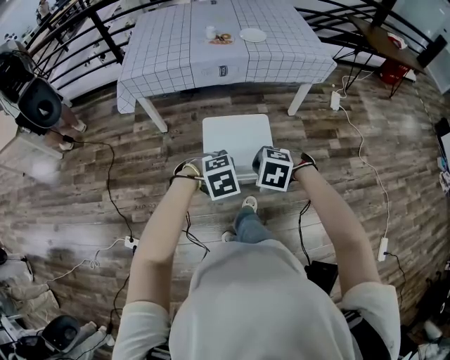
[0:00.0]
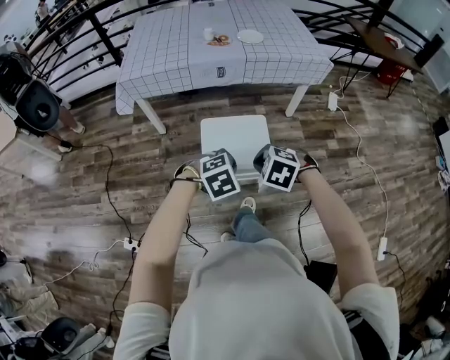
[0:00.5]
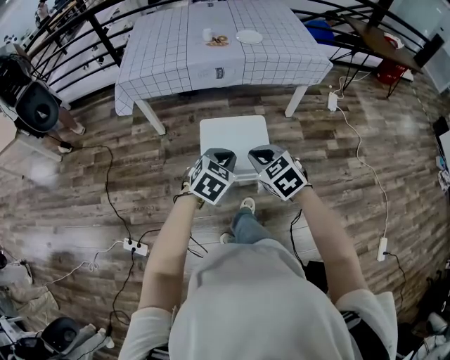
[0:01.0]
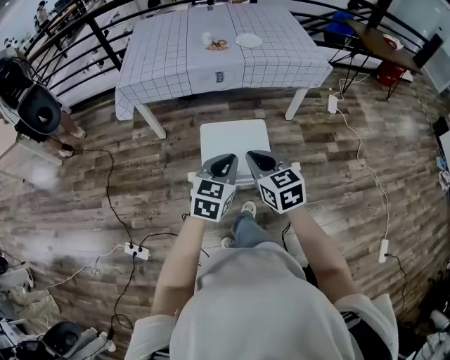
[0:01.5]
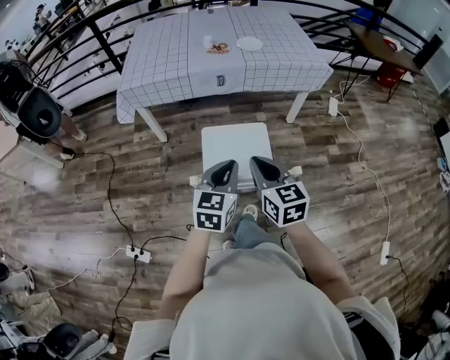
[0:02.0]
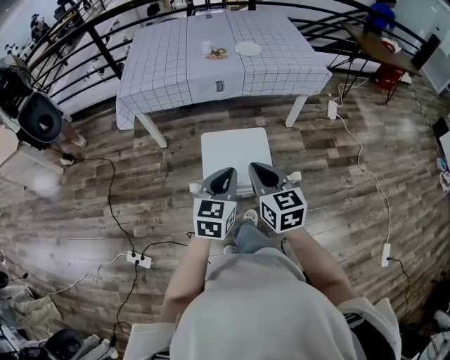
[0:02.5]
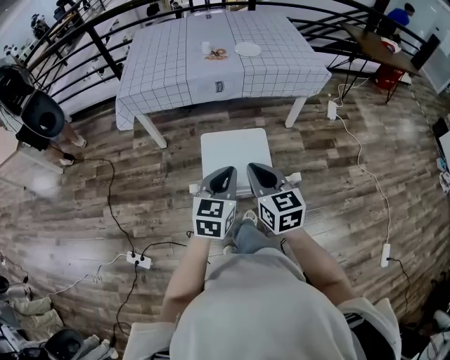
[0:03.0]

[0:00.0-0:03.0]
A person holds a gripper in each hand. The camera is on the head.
0:00.0 to 0:01.5: The grippers both shift upward by roughly 10 cm. The left gripper points its fingers about 40 degrees further upward, while the right gripper angles its fingers upward, by about 40 degrees.
0:01.5 to 0:03.0: There are only small adjustments of the grippers.

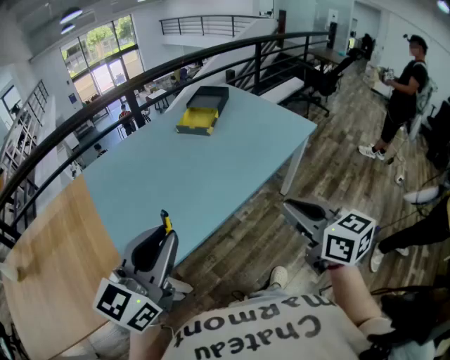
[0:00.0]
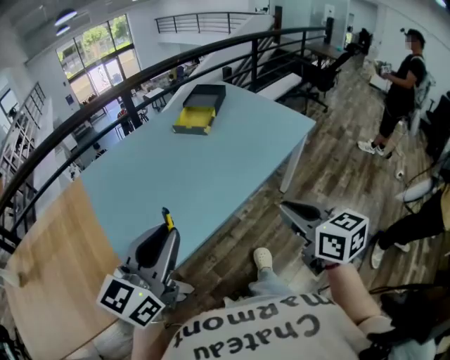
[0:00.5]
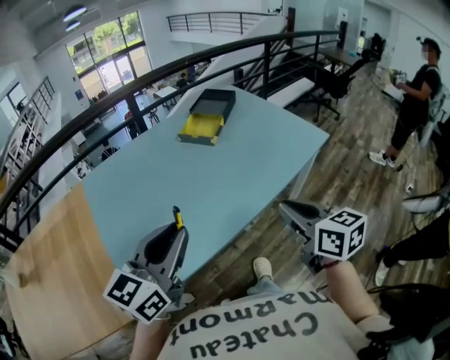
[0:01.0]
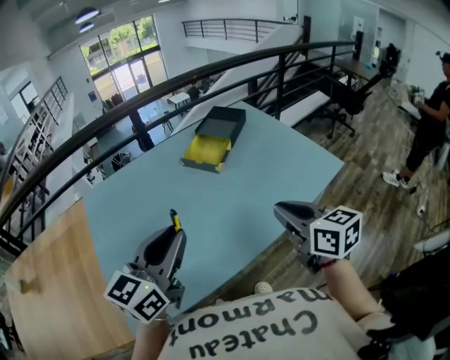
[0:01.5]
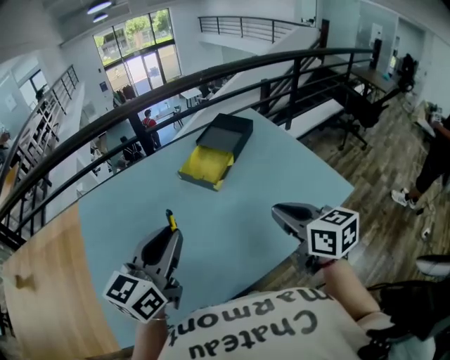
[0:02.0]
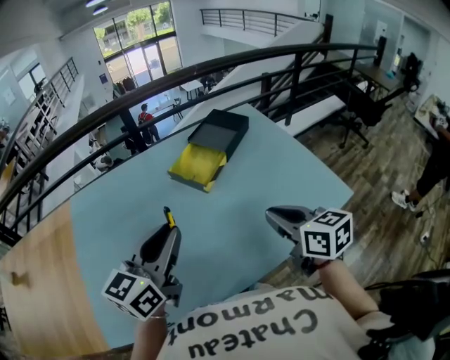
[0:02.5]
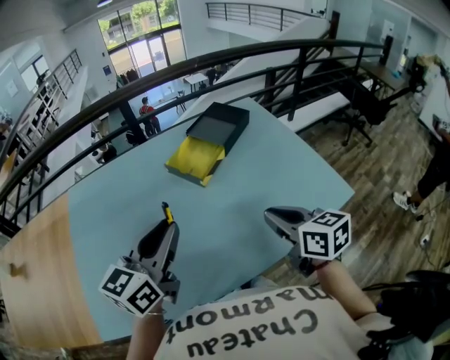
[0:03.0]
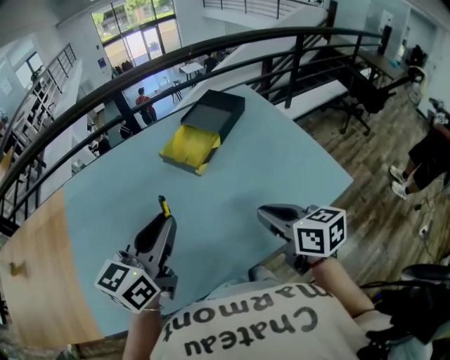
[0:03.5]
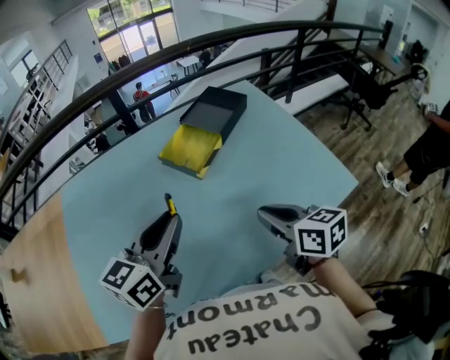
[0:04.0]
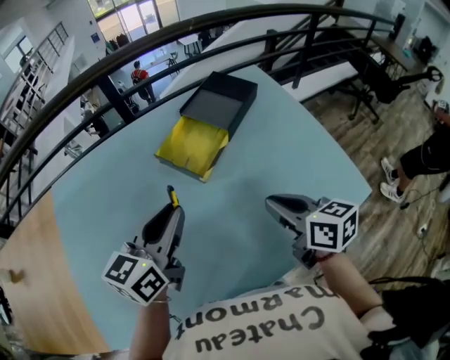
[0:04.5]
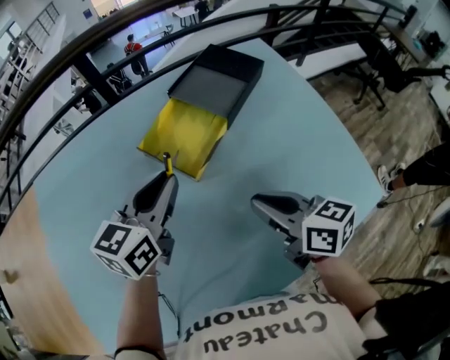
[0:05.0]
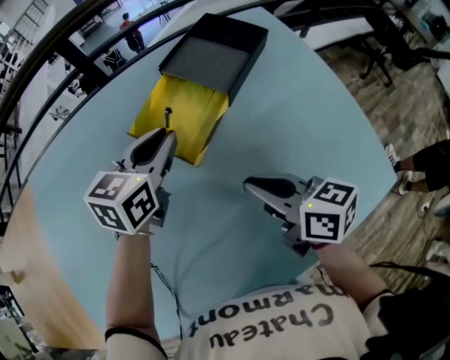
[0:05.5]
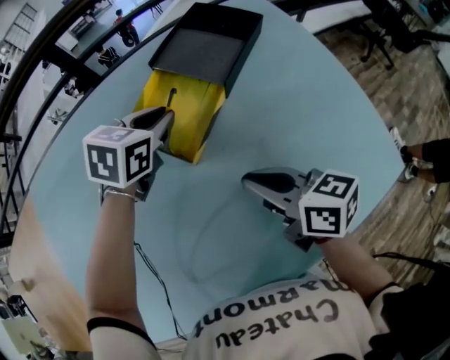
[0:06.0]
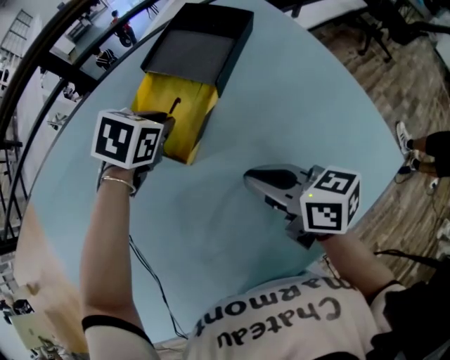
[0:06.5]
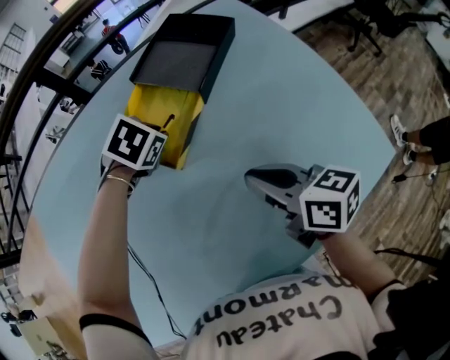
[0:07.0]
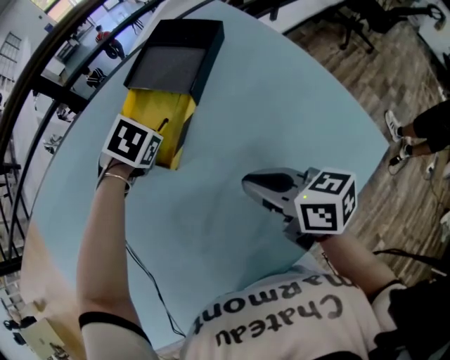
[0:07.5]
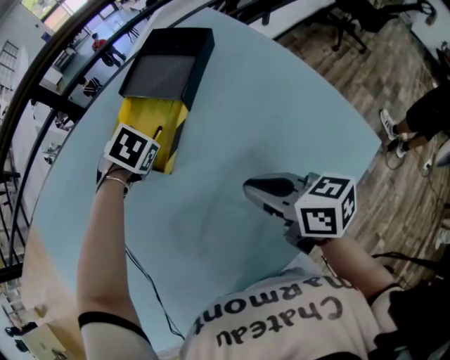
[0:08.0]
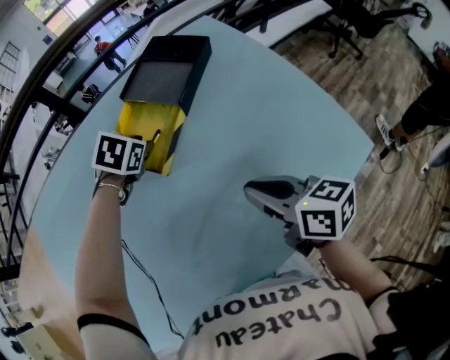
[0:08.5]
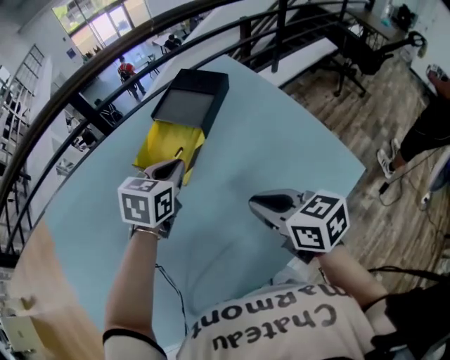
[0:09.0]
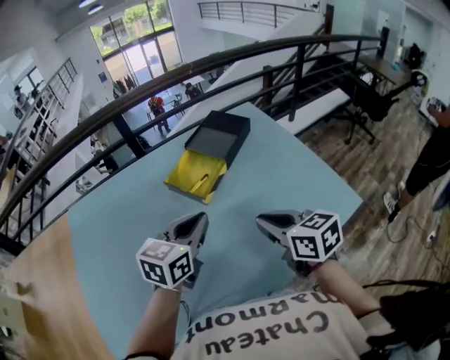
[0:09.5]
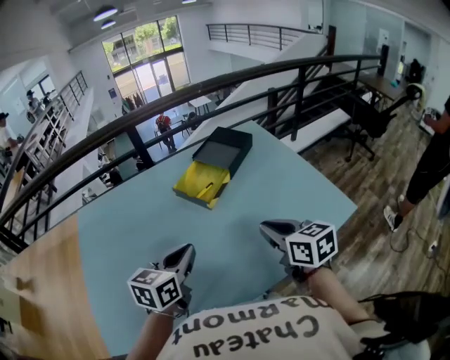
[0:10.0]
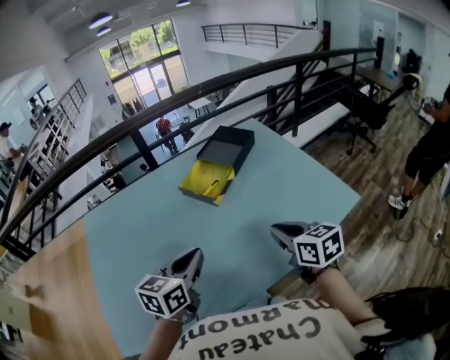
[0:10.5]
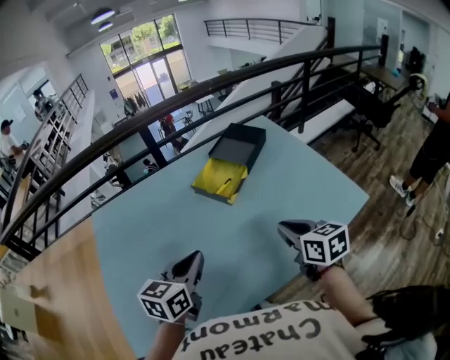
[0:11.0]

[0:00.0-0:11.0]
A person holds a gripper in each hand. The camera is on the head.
0:00.0 to 0:02.0: Both grippers move forward, some 35 cm.
0:02.0 to 0:03.5: The right gripper goes approximately 5 cm downward. Meanwhile the left gripper goes about 5 cm to the right.
0:03.5 to 0:05.5: The left gripper goes approximately 35 cm forward and downward. Meanwhile the right gripper moves forward and downward, some 20 cm.
0:05.5 to 0:07.5: The right gripper ends up about 5 cm from where it was. The left gripper shifts some 10 cm downward, and angles its fingers downward, by approximately 50 degrees.
0:07.5 to 0:09.0: The right gripper shifts approximately 5 cm upward. The left gripper heads upward, covering approximately 10 cm, and tips its fingers upward by some 40 degrees.
0:09.0 to 0:11.0: The right gripper shifts about 5 cm backward, while the left gripper heads backward and to the left, covering about 30 cm, and changes its angle by approximately 20 degrees.

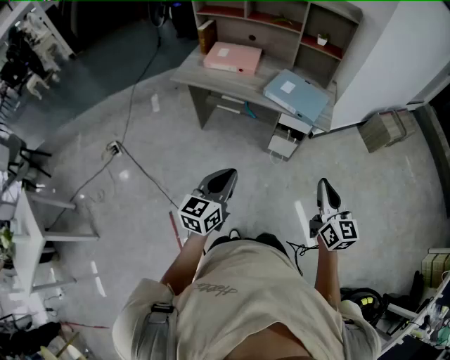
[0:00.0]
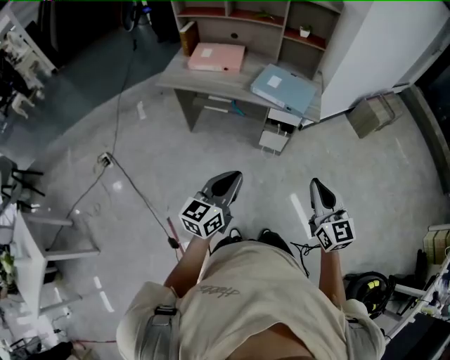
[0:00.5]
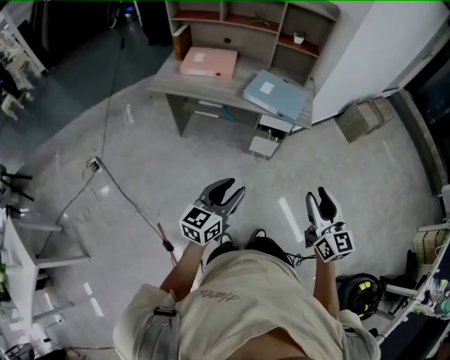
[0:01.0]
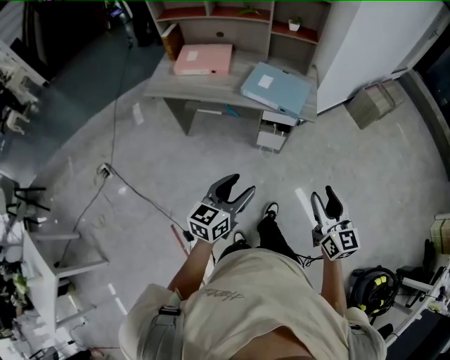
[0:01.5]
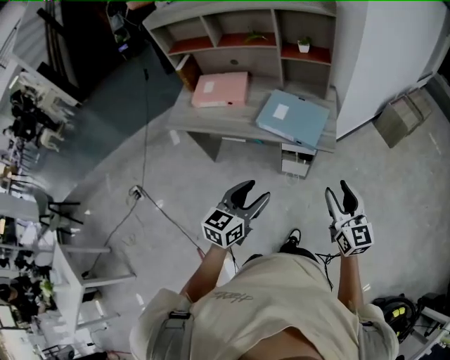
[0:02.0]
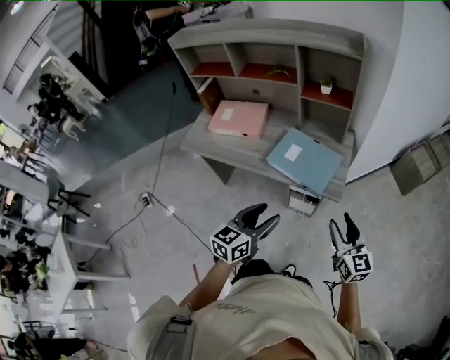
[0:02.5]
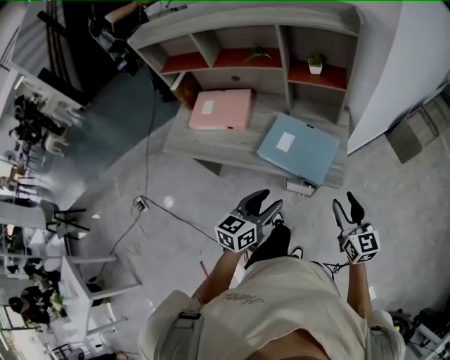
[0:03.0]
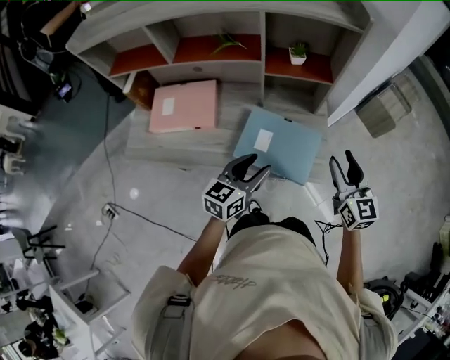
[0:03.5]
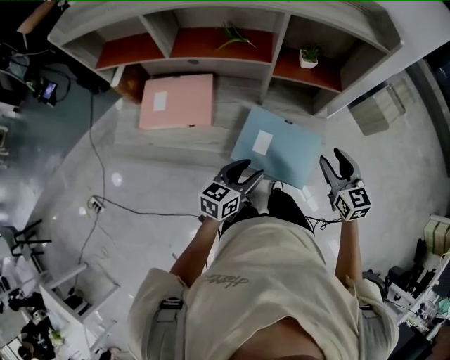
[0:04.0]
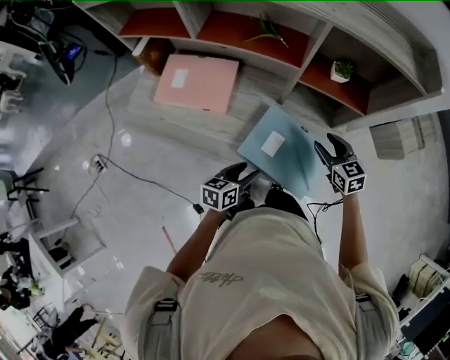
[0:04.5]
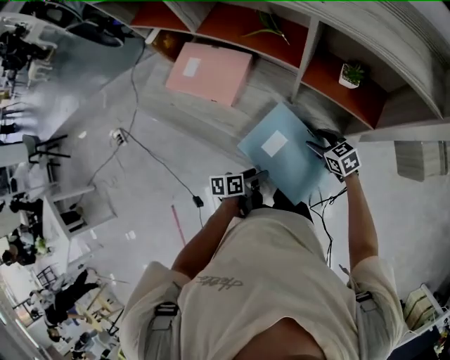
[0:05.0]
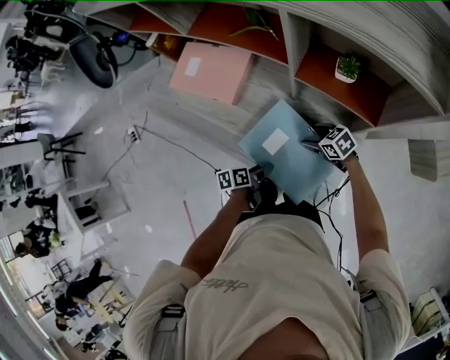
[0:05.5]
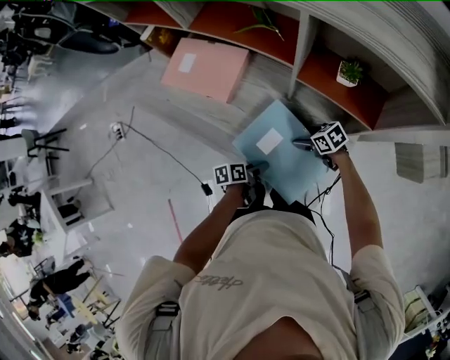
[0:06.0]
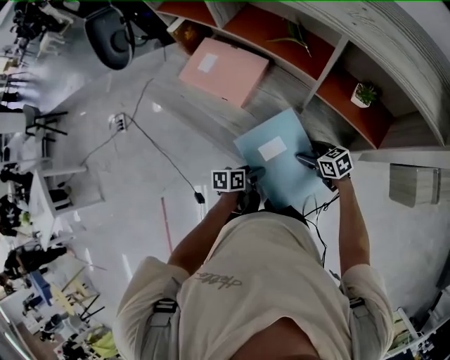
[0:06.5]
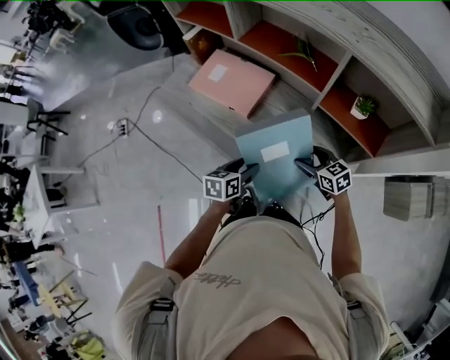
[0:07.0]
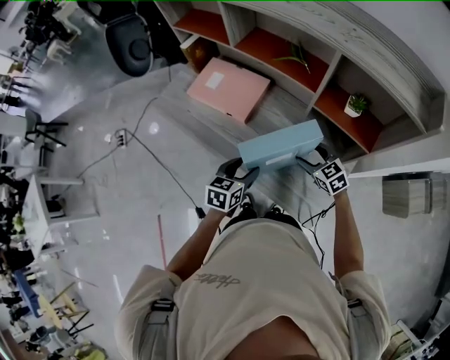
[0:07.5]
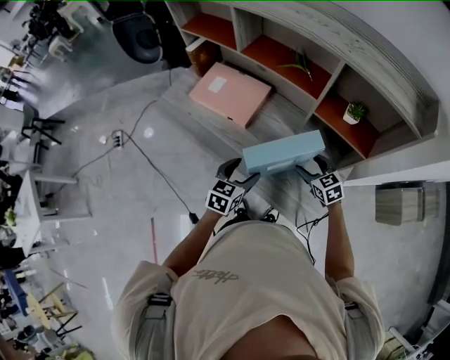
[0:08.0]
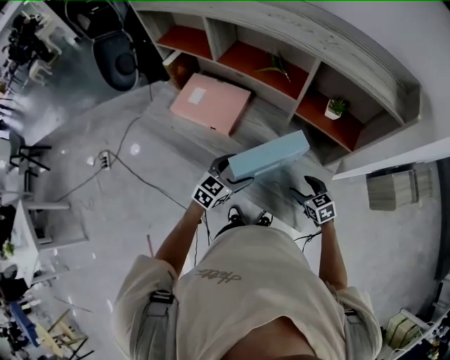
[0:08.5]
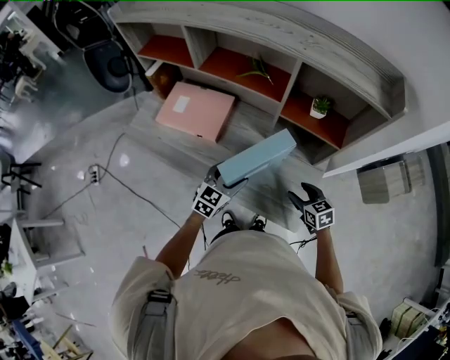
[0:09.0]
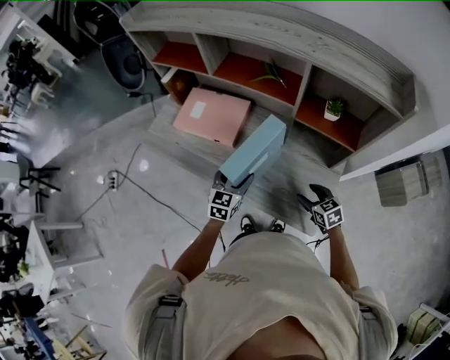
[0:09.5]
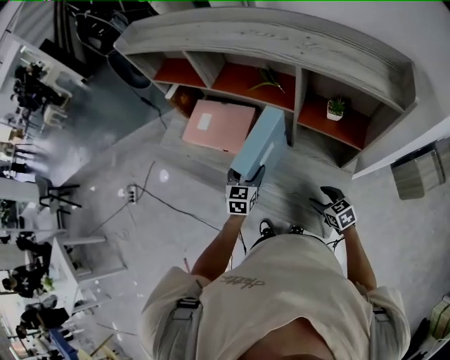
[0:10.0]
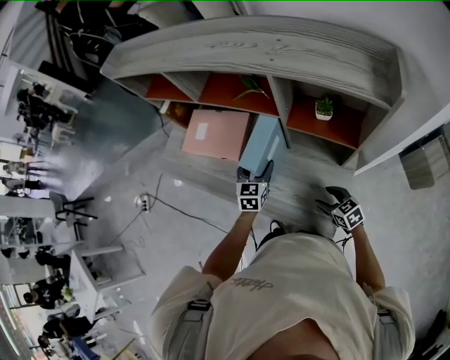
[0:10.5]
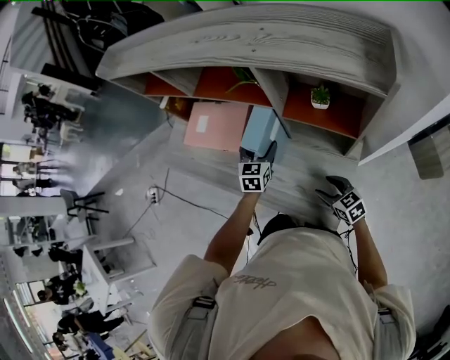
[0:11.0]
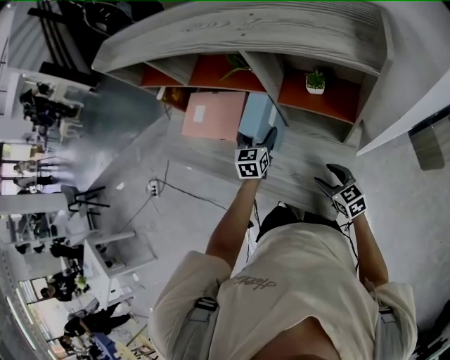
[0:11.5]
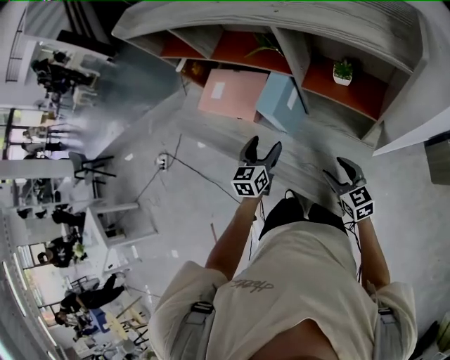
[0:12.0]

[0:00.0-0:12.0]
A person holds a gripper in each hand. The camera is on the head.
0:00.0 to 0:02.0: The right gripper travels forward by about 15 cm, and opens up. Meanwhile the left gripper travels forward and to the right by roughly 20 cm, and opens its fingers.
0:02.0 to 0:04.0: The two grippers go some 35 cm forward. The right gripper rotates about 20 degrees.
0:04.0 to 0:06.0: The two grippers go approximately 25 cm downward. The right gripper changes its angle by approximately 70 degrees, and opens. The left gripper rotates around the line of its fingers by approximately 60 degrees, counterclockwise from behind.
0:06.0 to 0:08.0: The left gripper travels upward by approximately 20 cm, and rolls clockwise, seen from behind, by about 50 degrees. Meanwhile the right gripper goes some 10 cm upward, and turns by approximately 40 degrees.
0:08.0 to 0:10.0: The left gripper goes approximately 10 cm forward, while the right gripper moves backward, roughly 10 cm.
0:10.0 to 0:12.0: The right gripper shifts approximately 5 cm upward; the left gripper goes to the right and returns, approximately 10 cm each way.
